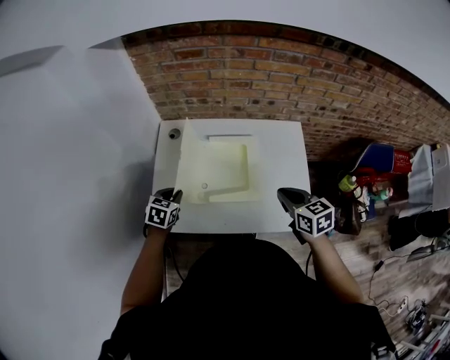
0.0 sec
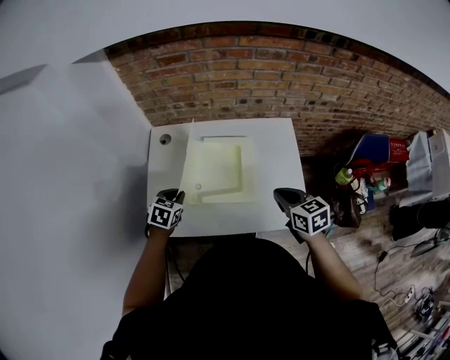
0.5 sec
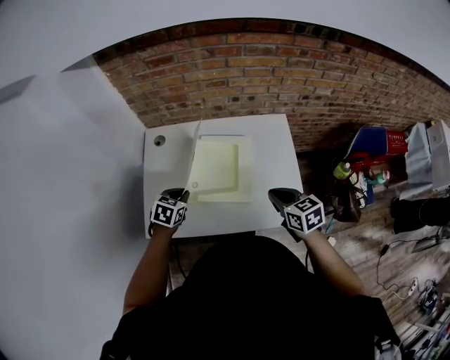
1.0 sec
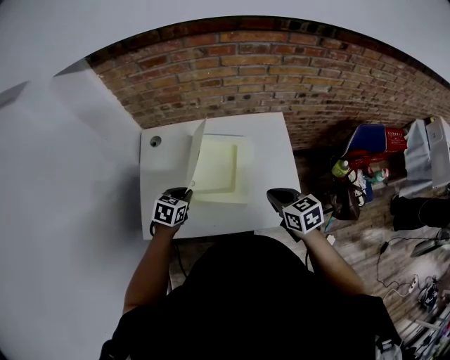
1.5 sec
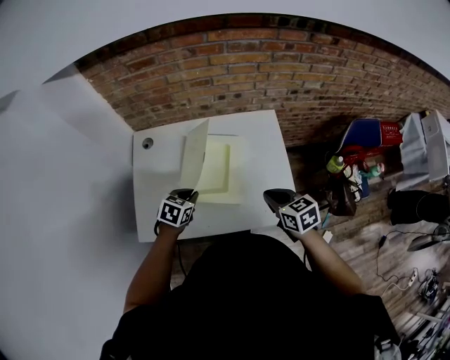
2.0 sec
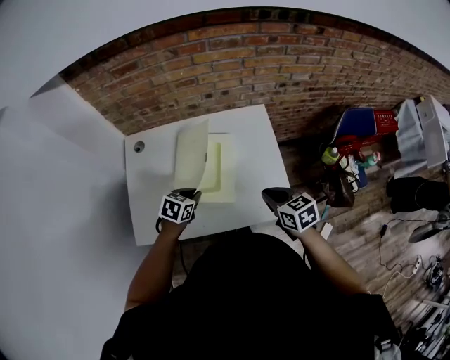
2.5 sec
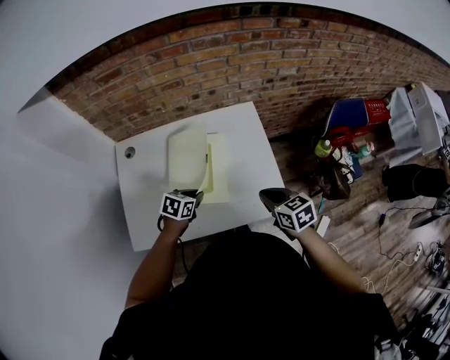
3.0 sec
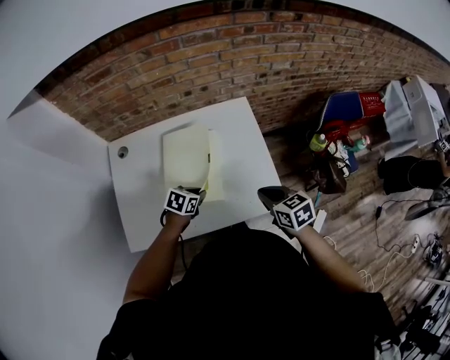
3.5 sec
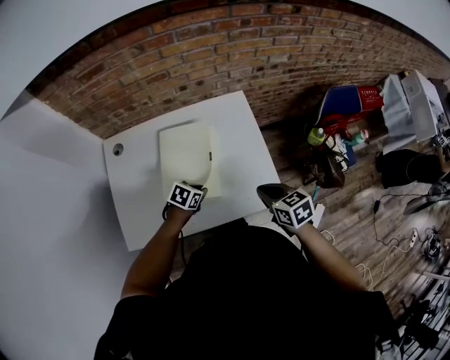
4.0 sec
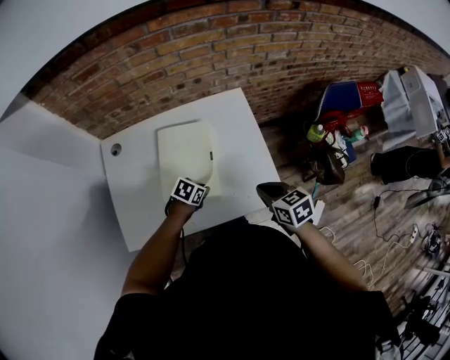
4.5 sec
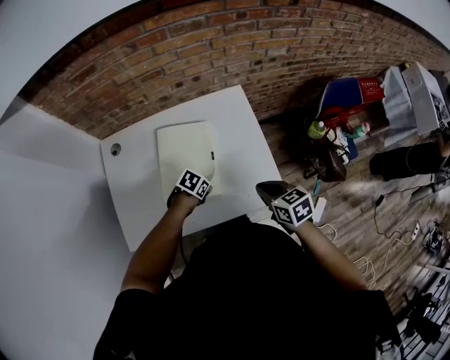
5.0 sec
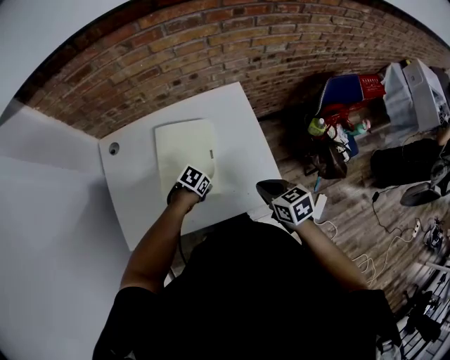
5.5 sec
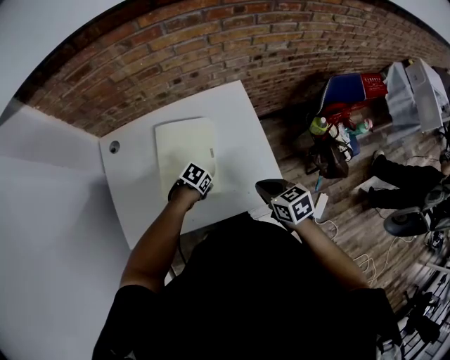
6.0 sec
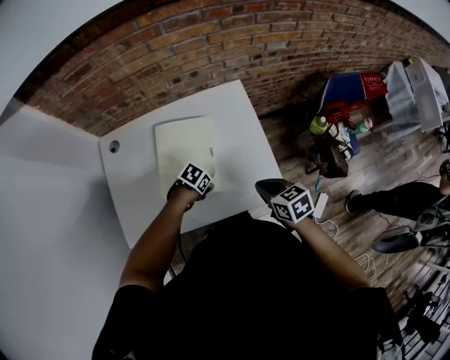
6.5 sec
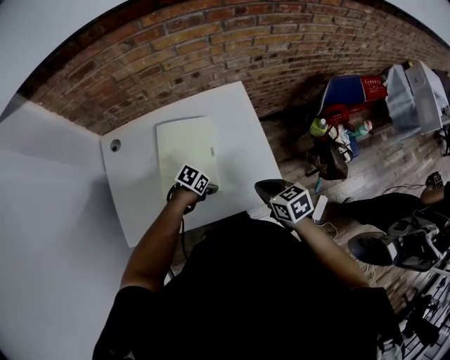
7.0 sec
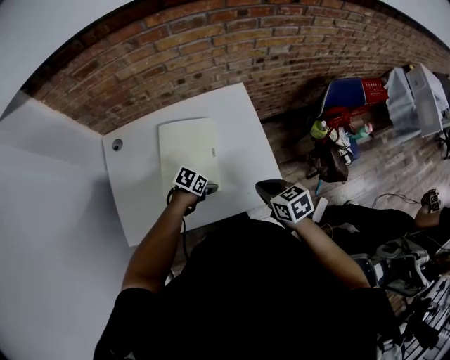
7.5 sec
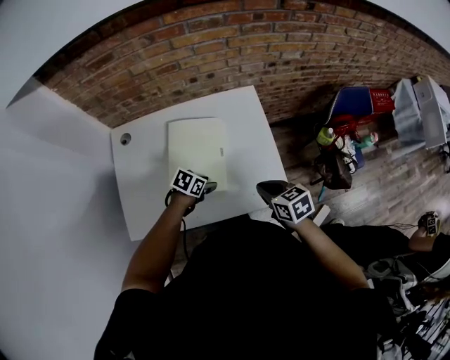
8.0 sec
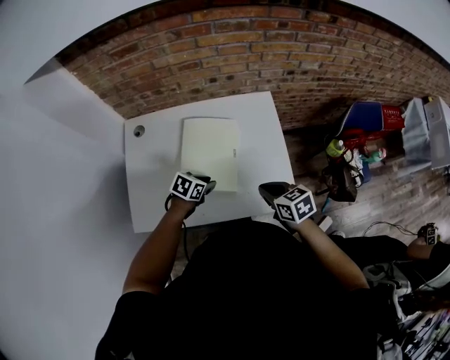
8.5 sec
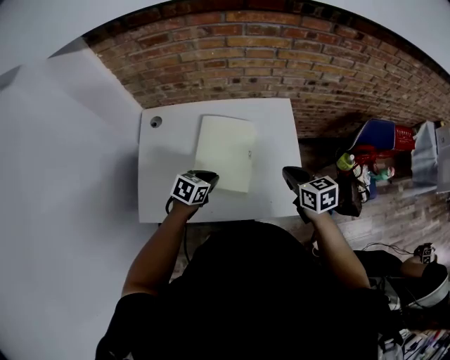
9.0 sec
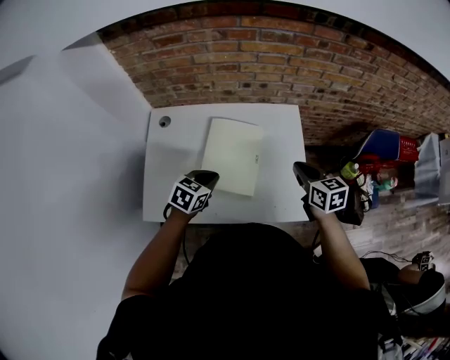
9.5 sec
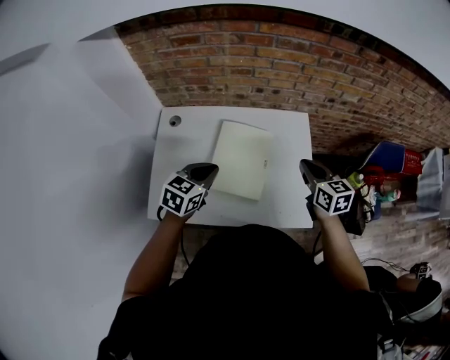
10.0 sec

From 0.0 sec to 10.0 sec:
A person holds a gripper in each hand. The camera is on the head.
From 0.0 sec to 2.0 sec: The right gripper is displaced to the right by about 5 cm, while the left gripper travels to the right by approximately 15 cm.
From 2.0 sec to 4.0 sec: The right gripper moves to the right, roughly 5 cm; the left gripper shifts some 15 cm to the right and downward, and turns by some 20 degrees.
From 4.0 sec to 6.0 sec: The grippers move only a little.
From 6.0 sec to 8.0 sec: The left gripper opens up.
From 8.0 sec to 10.0 sec: The left gripper travels upward and to the left by about 25 cm, changes its angle by some 40 degrees, and closes, while the right gripper travels forward and upward by about 15 cm.

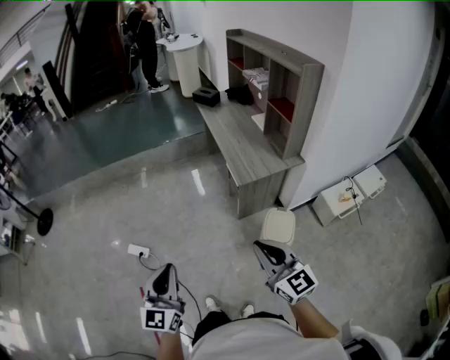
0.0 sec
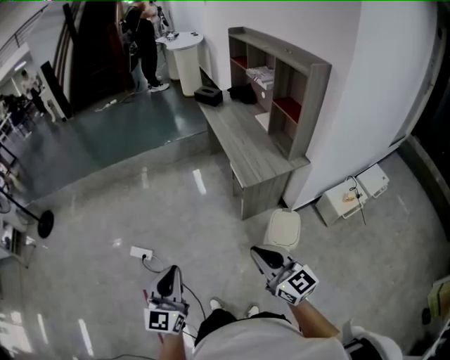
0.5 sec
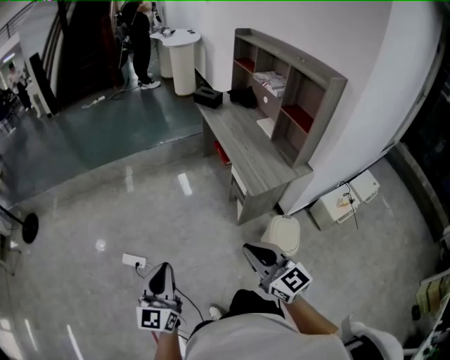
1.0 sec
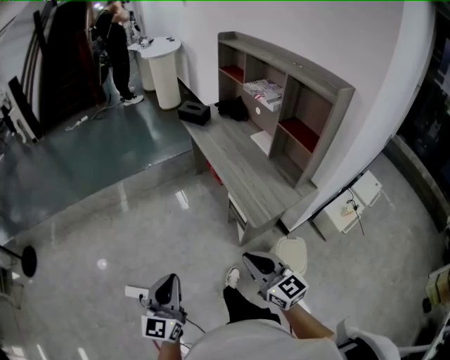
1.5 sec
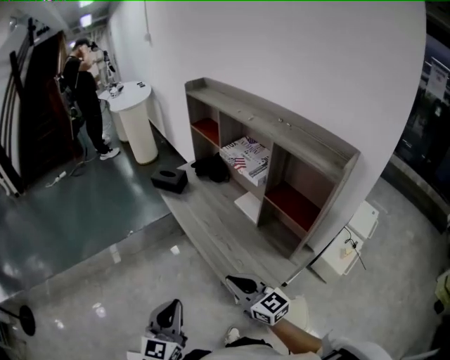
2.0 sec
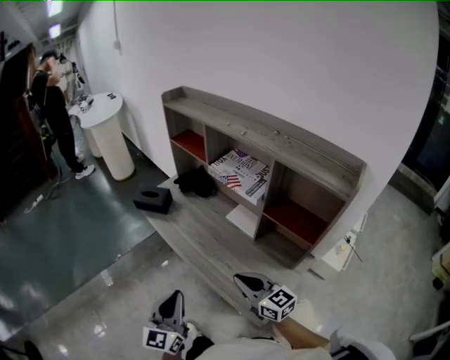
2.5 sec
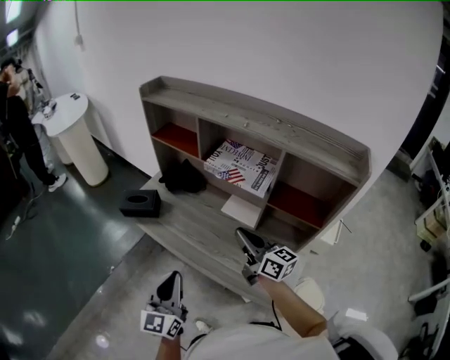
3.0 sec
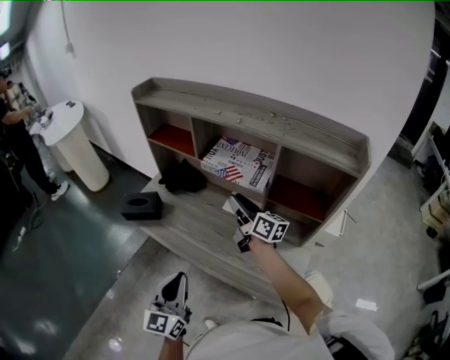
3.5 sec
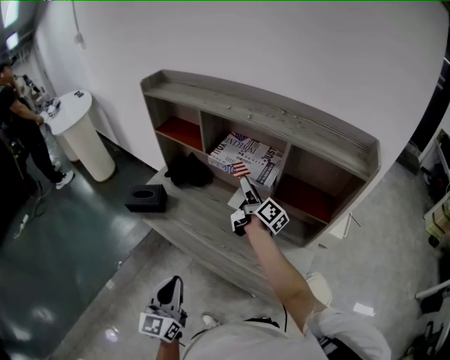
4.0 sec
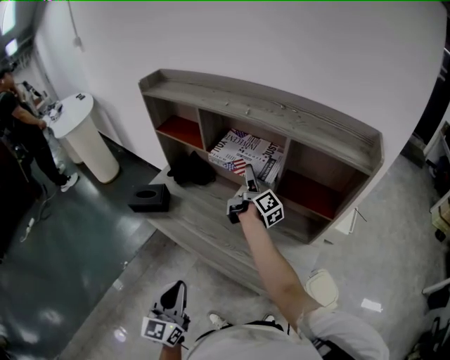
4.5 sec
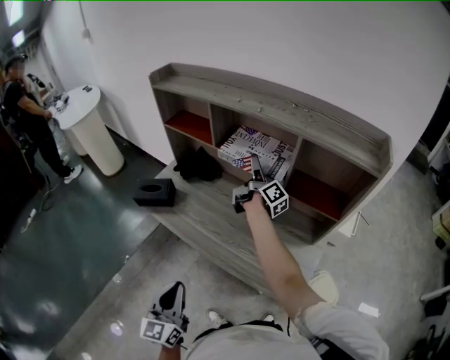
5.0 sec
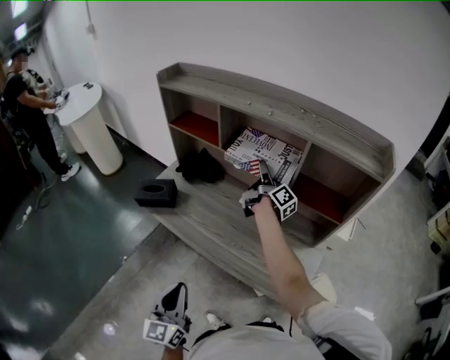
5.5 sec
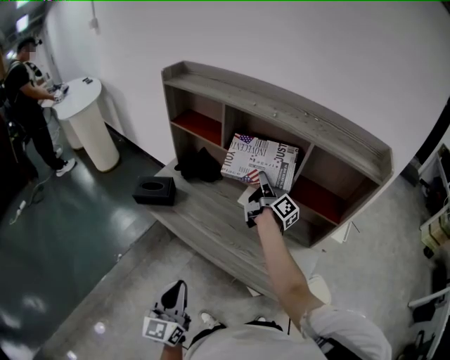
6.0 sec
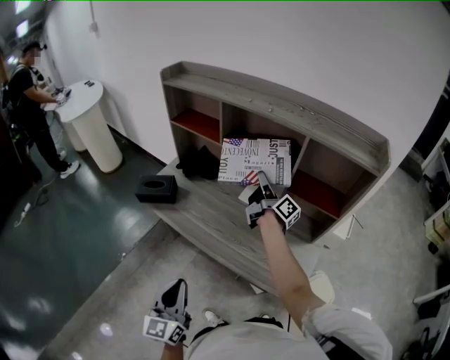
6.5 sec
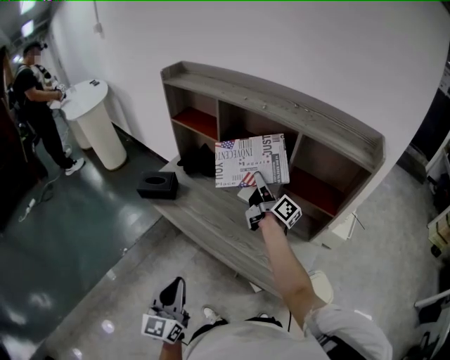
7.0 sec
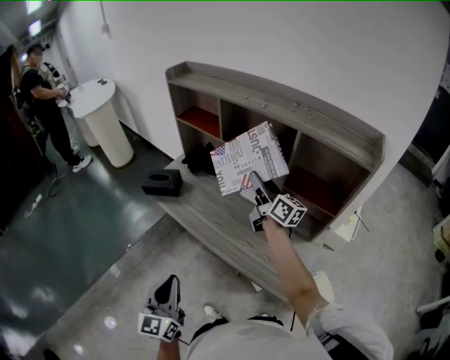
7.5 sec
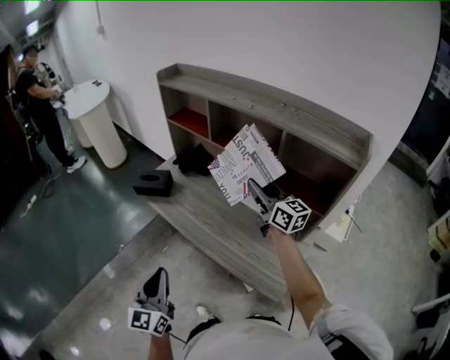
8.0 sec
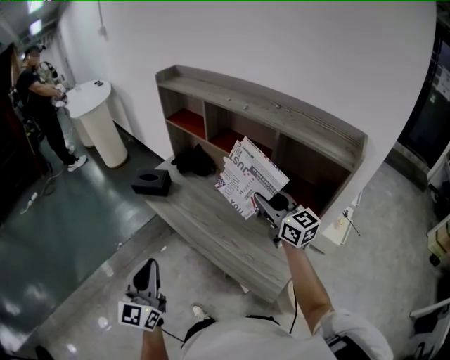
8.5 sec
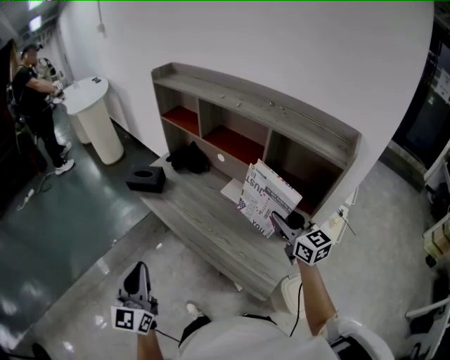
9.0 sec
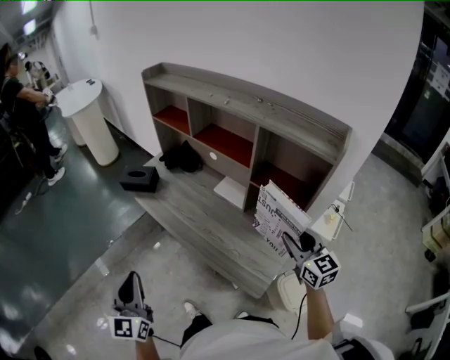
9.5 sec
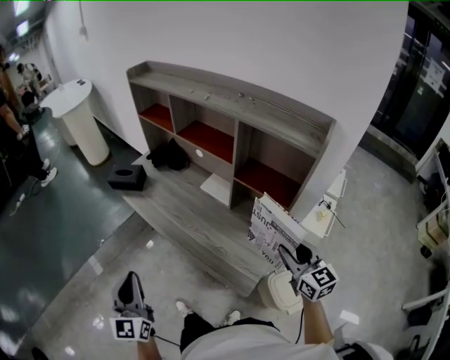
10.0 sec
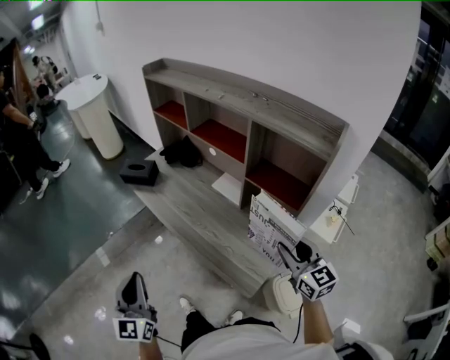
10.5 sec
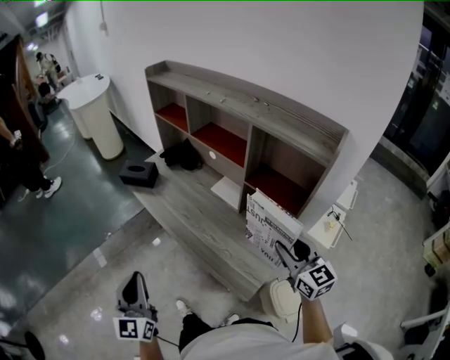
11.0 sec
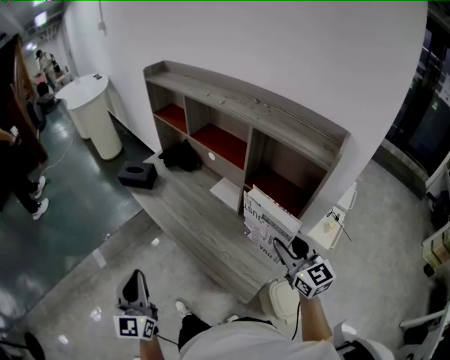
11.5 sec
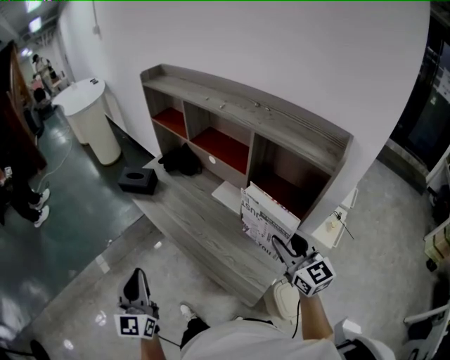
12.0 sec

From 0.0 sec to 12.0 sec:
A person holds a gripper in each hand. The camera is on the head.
From 0.0 sec to 2.0 sec: Both grippers are carried forward, about 60 cm. The left gripper swivels about 20 degrees.
From 2.0 sec to 4.0 sec: The right gripper shifts by approximately 40 cm, swivels some 80 degrees, and opens its fingers; the left gripper shifts by roughly 30 cm, and rotates approximately 20 degrees.
From 4.0 sec to 6.0 sec: The left gripper shifts by about 5 cm, while the right gripper closes its fingers.
From 6.0 sec to 8.0 sec: The right gripper shifts approximately 15 cm backward and upward, and twists approximately 50 degrees counterclockwise, seen from behind; the left gripper changes place by some 5 cm.
From 8.0 sec to 10.0 sec: The left gripper heads backward, covering approximately 5 cm. The right gripper moves backward and to the right, approximately 30 cm, and changes its angle by about 30 degrees.
From 10.0 sec to 12.0 sec: The right gripper heads forward, covering approximately 10 cm.

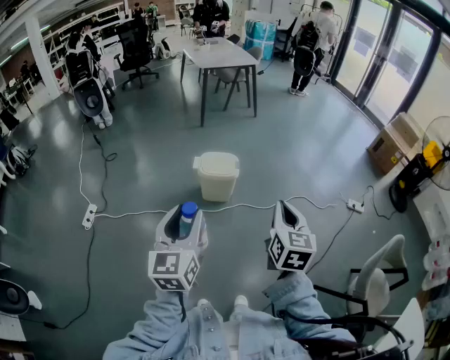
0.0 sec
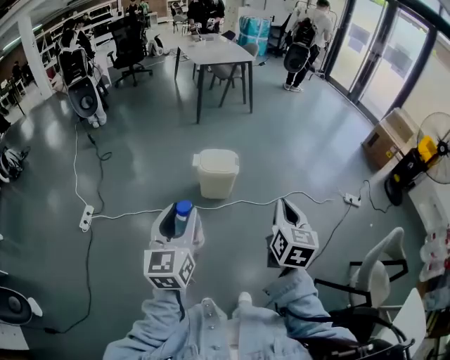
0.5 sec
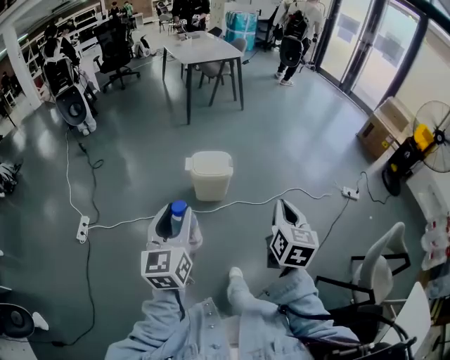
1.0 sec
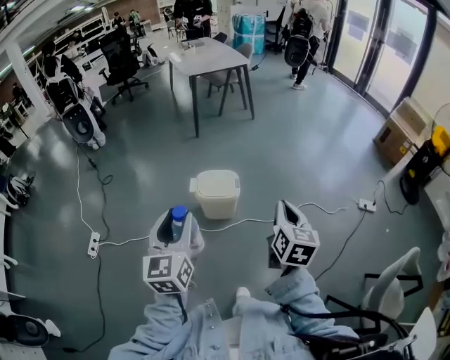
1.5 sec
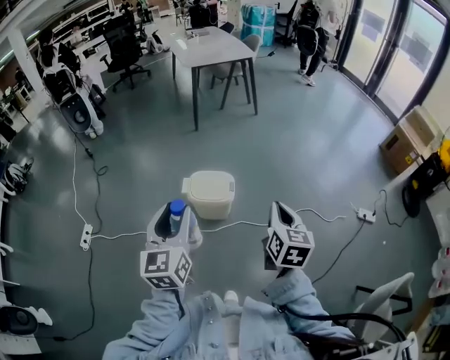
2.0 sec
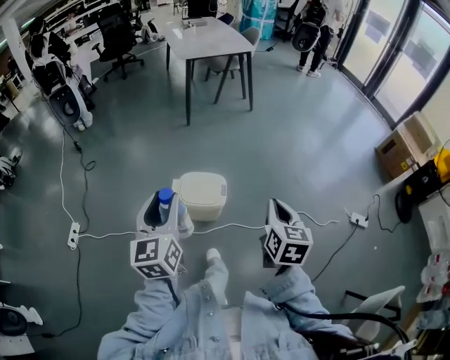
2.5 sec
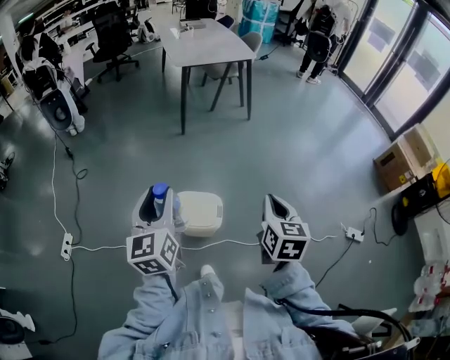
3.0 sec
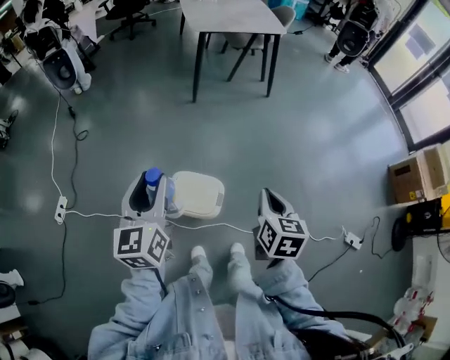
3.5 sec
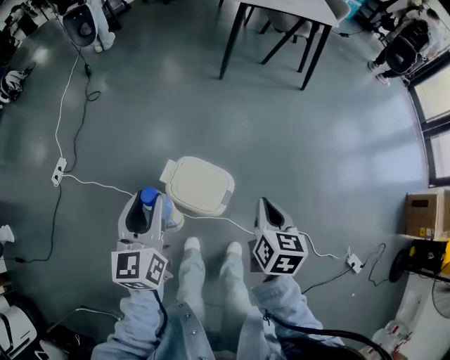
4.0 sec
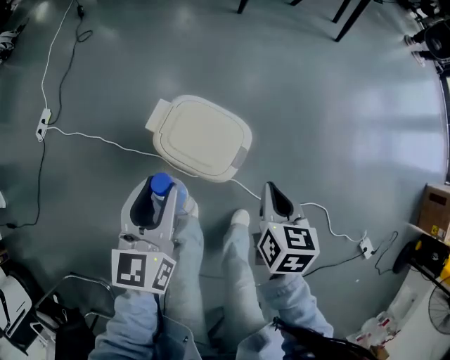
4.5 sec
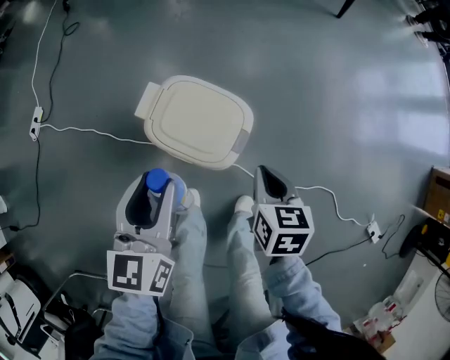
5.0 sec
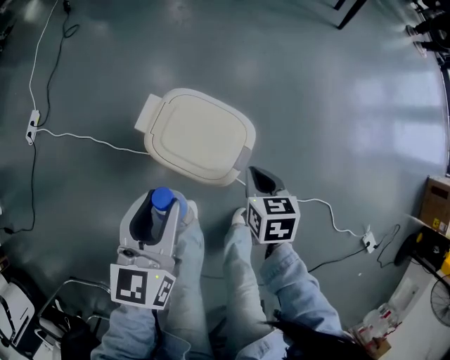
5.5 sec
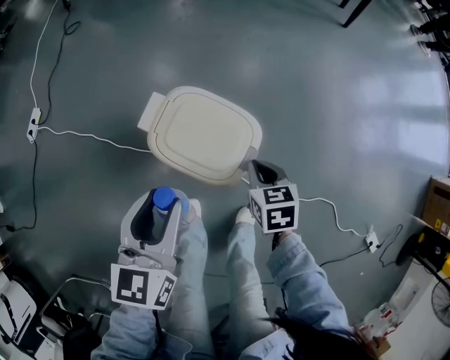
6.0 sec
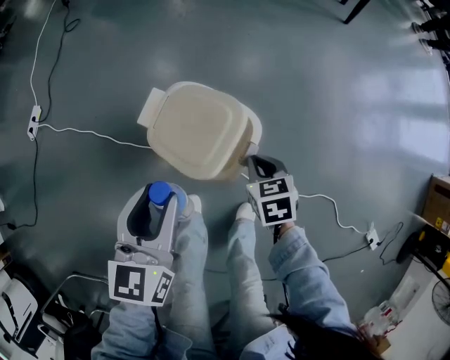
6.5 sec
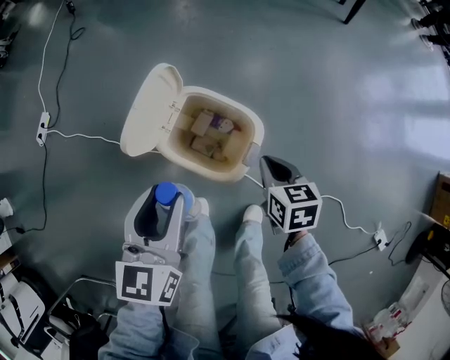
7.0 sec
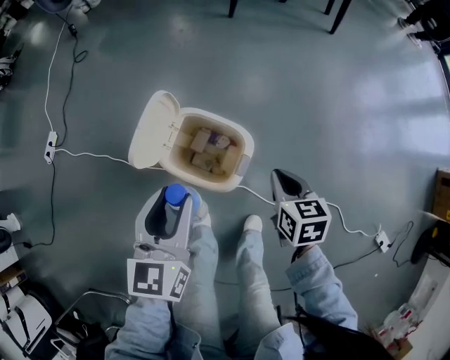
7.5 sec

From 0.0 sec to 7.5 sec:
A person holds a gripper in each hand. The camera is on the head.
From 0.0 sec to 2.0 sec: Both grippers move forward, roughly 25 cm.
From 2.0 sec to 4.0 sec: Both grippers move forward and downward, approximately 35 cm. The right gripper swivels some 30 degrees, while the left gripper turns by approximately 30 degrees.
From 4.0 sec to 5.5 sec: The grippers both shift downward by roughly 30 cm. The right gripper swivels roughly 20 degrees.
From 5.5 sec to 7.5 sec: The right gripper shifts roughly 10 cm upward and to the right; the left gripper moves roughly 5 cm.
